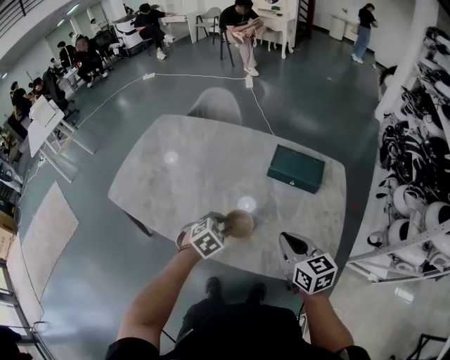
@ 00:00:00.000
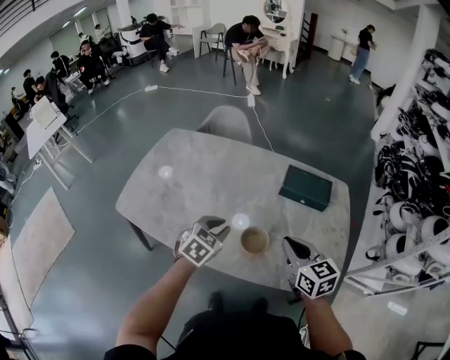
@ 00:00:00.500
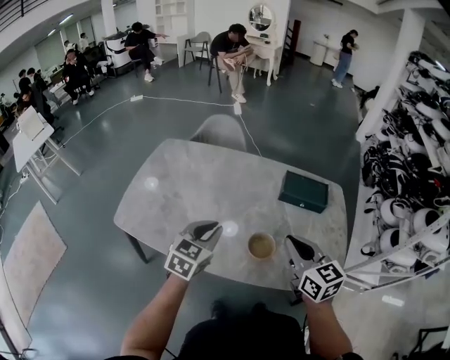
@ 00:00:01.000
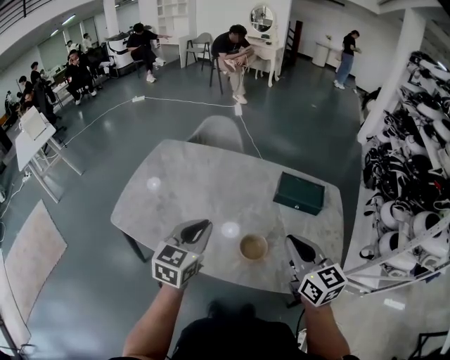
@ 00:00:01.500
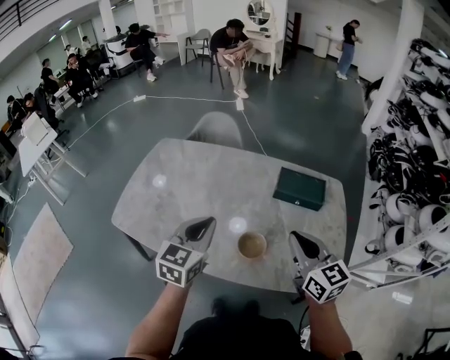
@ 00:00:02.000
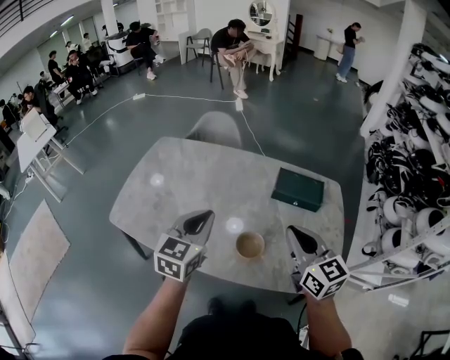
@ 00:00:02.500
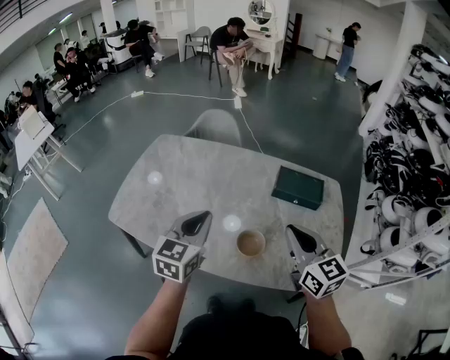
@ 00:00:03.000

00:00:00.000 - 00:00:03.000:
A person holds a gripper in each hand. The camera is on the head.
00:00:00.000 - 00:00:01.500: The left gripper goes some 25 cm upward and to the left, and angles its fingers upward, by some 40 degrees. Meanwhile the right gripper is displaced upward and to the left by about 20 cm.
00:00:01.500 - 00:00:03.000: The grippers make only small movements.

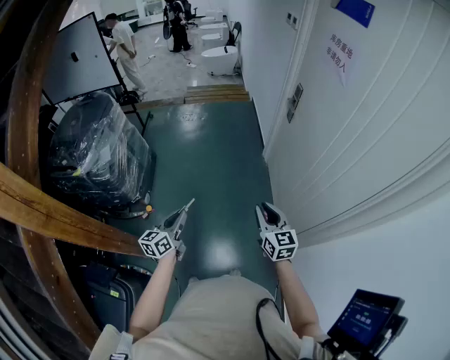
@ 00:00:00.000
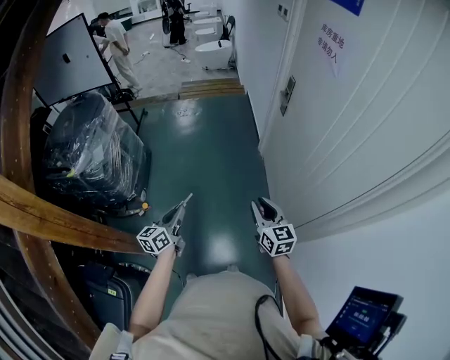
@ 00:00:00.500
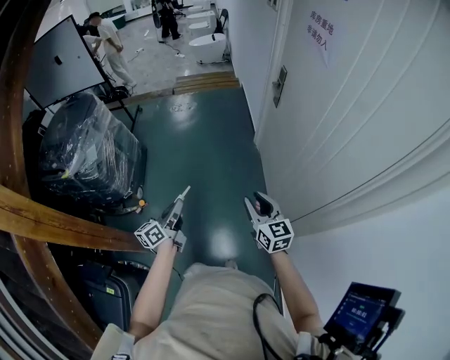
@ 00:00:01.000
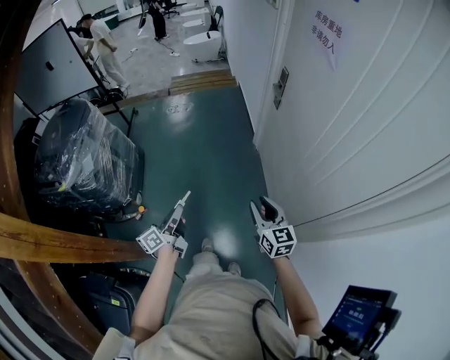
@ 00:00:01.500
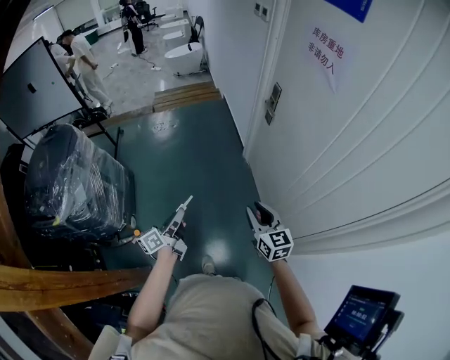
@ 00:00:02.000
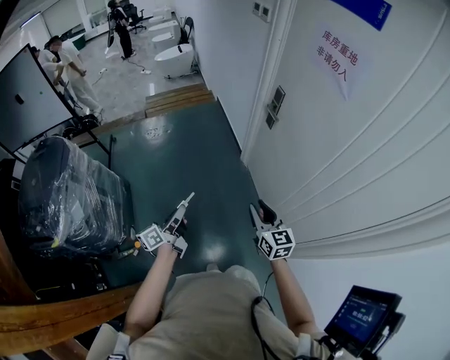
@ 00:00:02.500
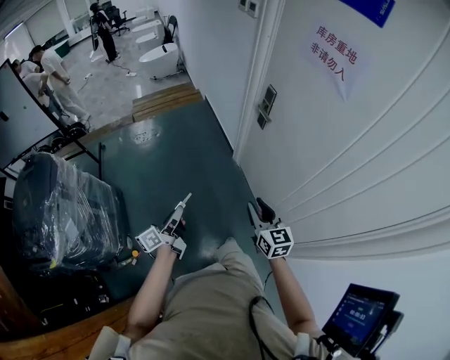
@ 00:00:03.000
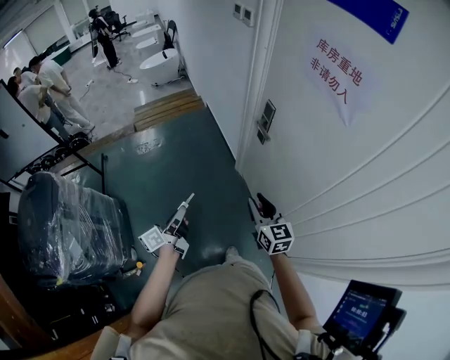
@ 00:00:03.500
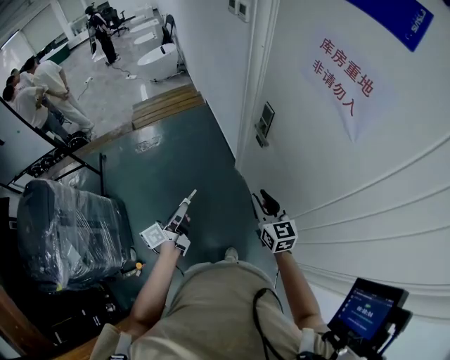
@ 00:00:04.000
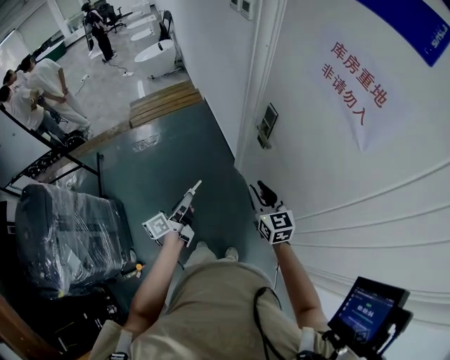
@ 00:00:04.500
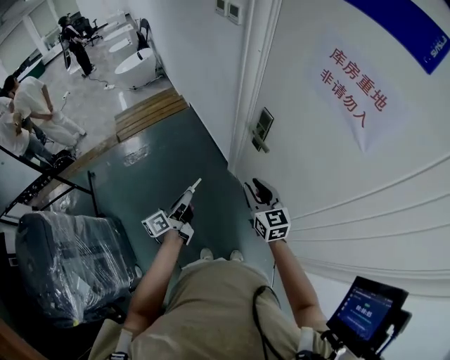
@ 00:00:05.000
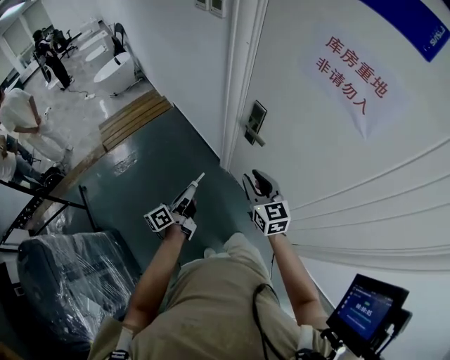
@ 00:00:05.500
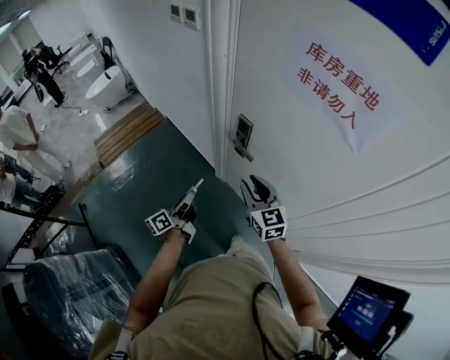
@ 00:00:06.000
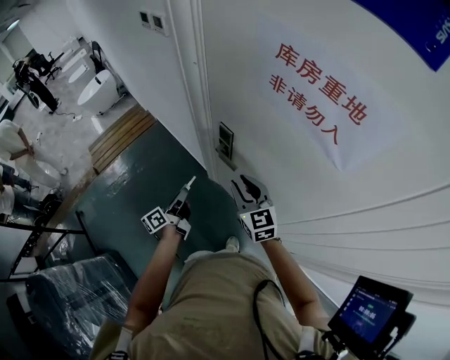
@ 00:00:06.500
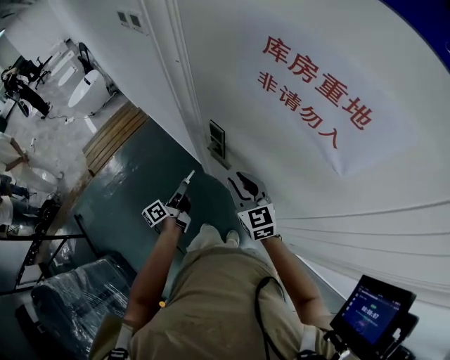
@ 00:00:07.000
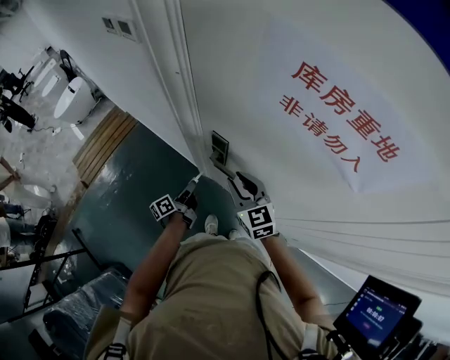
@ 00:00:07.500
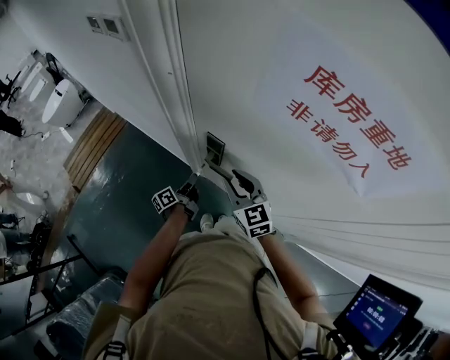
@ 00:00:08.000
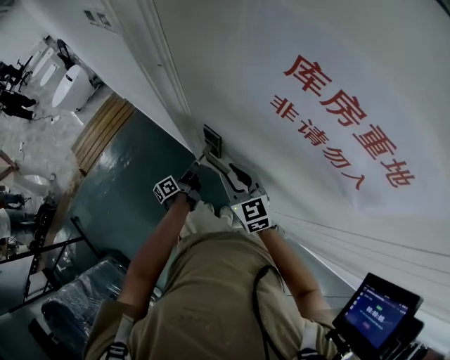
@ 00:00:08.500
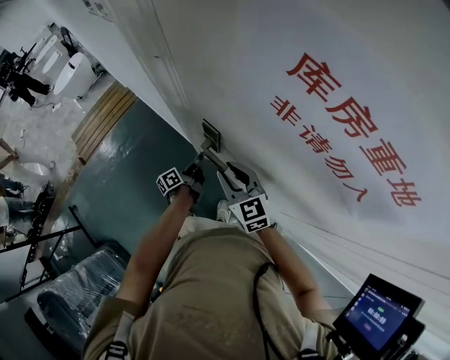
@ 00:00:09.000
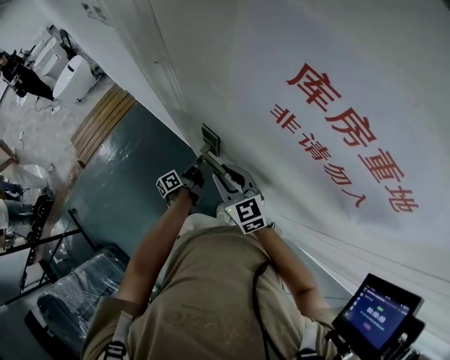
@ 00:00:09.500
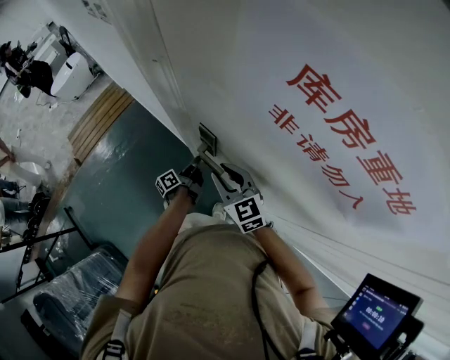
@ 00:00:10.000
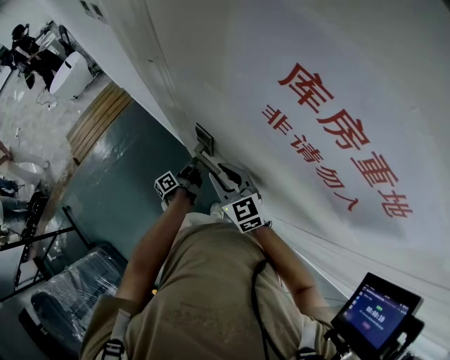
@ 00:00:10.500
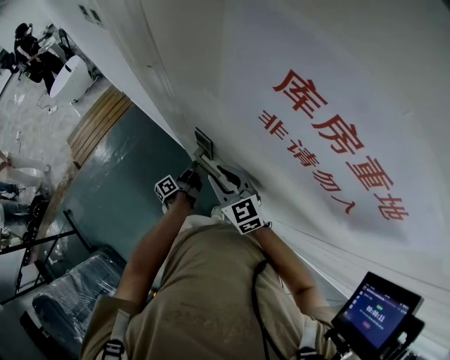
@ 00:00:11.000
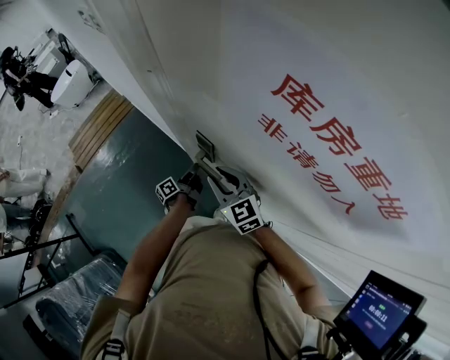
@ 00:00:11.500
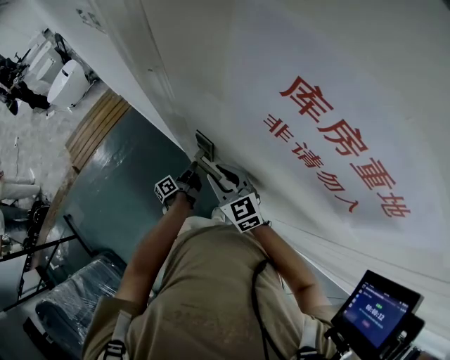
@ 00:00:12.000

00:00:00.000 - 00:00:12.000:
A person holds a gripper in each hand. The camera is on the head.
00:00:00.000 - 00:00:02.000: The grippers both shift forward by approximately 15 cm. The left gripper turns by about 30 degrees.
00:00:02.000 - 00:00:04.000: The grippers both shift forward by roughly 30 cm.
00:00:04.000 - 00:00:06.000: The right gripper moves forward, approximately 15 cm, while the left gripper moves forward, about 20 cm, and turns by some 20 degrees.
00:00:06.000 - 00:00:08.000: The right gripper heads forward, covering about 15 cm, while the left gripper travels forward and downward by approximately 25 cm.
00:00:08.000 - 00:00:10.000: The left gripper shifts by about 5 cm.
00:00:10.000 - 00:00:12.000: The grippers make only small movements.

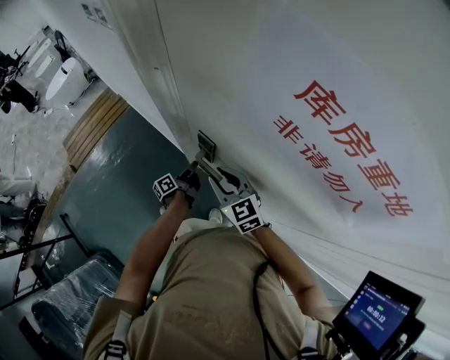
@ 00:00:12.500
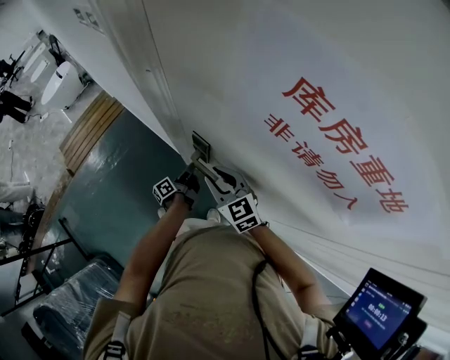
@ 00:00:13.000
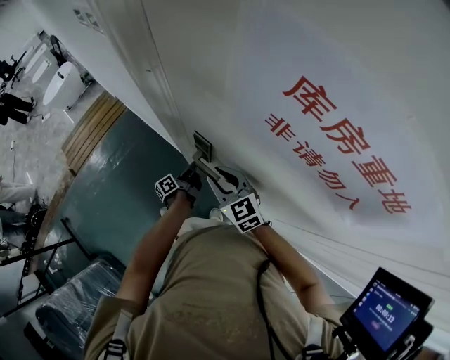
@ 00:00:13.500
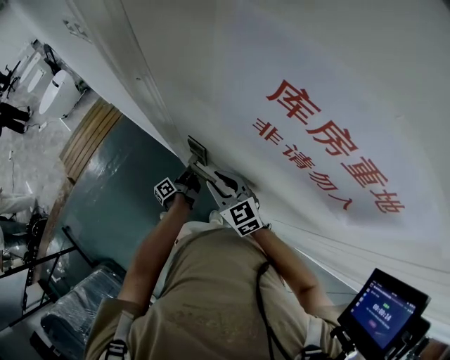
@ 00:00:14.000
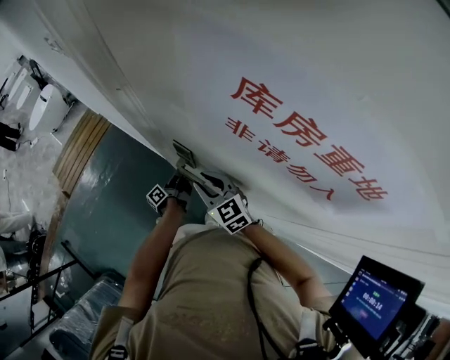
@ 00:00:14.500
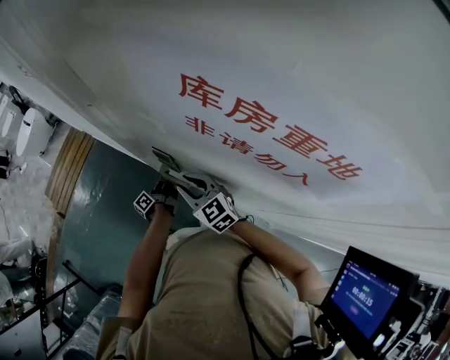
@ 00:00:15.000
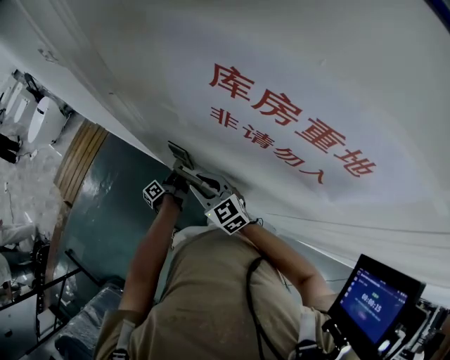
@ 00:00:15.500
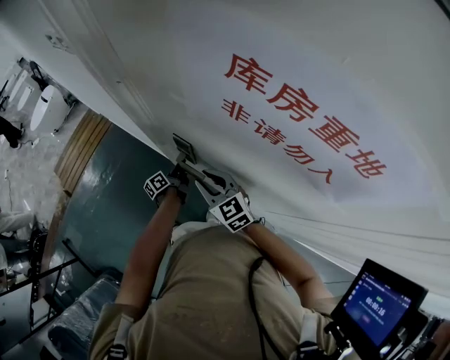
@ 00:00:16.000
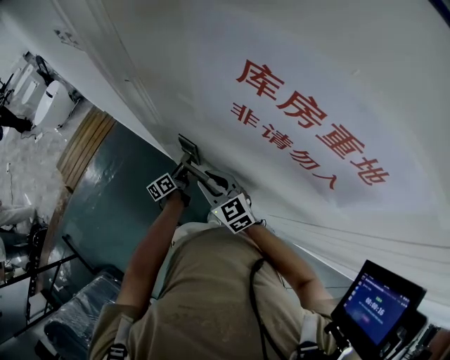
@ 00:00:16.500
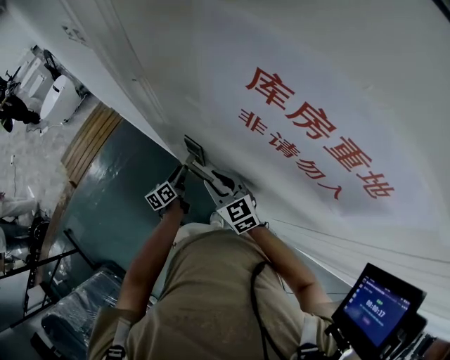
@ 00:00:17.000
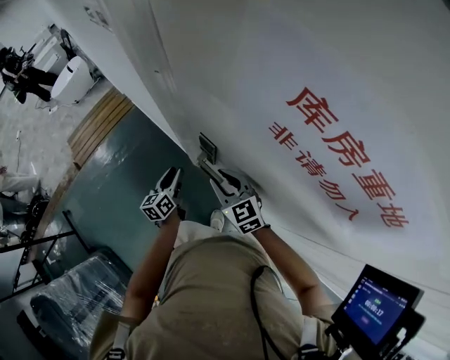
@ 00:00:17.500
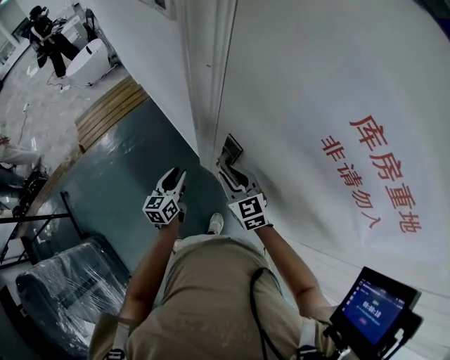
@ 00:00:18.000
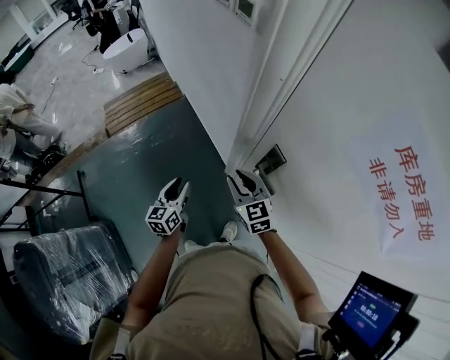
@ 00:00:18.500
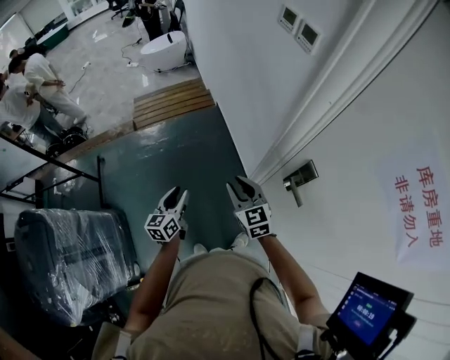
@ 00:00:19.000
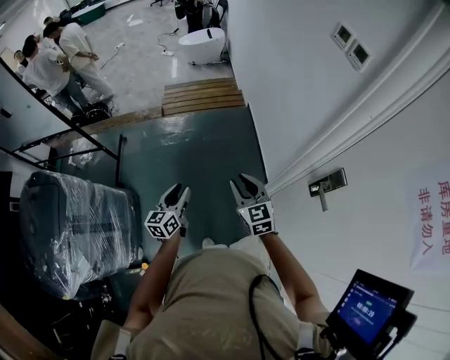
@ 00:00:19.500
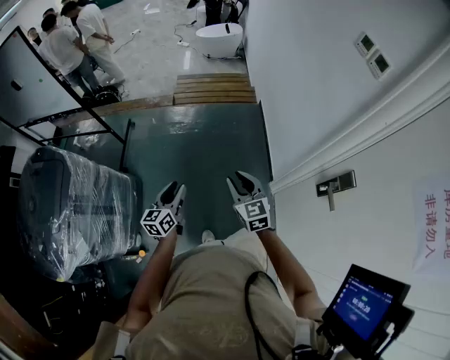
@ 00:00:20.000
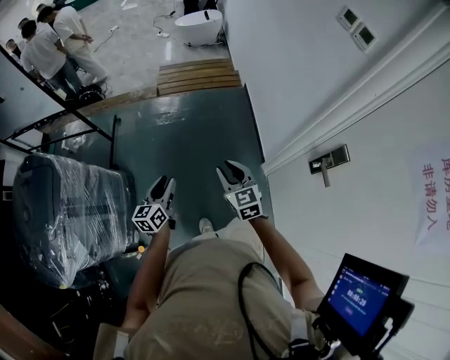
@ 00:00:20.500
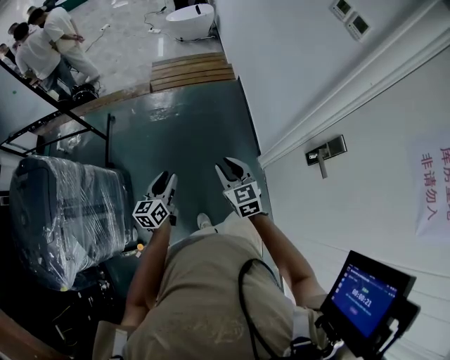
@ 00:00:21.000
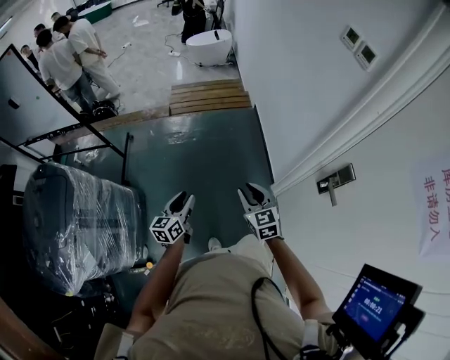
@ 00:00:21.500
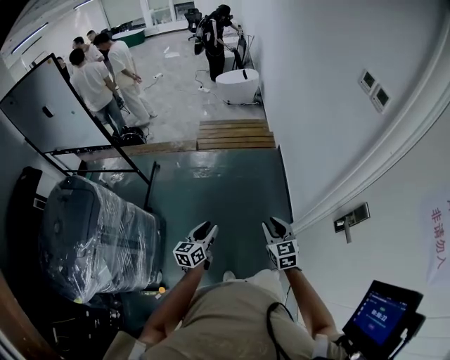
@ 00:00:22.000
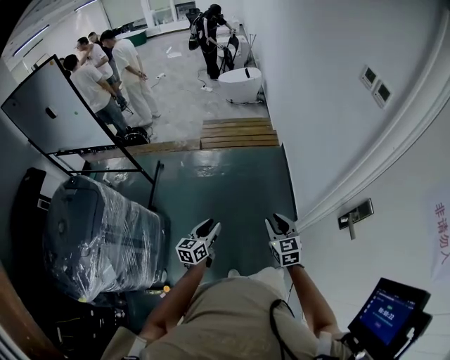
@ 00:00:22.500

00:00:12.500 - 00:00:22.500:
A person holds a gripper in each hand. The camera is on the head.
00:00:12.500 - 00:00:14.500: There are only small adjustments of the grippers.
00:00:14.500 - 00:00:16.500: The left gripper changes its angle by about 30 degrees, and opens its fingers.
00:00:16.500 - 00:00:18.500: The right gripper shifts some 15 cm to the left. The left gripper is displaced to the left, upward and backward by about 35 cm, and swivels roughly 40 degrees.
00:00:18.500 - 00:00:20.500: The left gripper changes place by approximately 35 cm, and changes its angle by approximately 30 degrees. Meanwhile the right gripper moves some 30 cm, and swivels roughly 20 degrees.
00:00:20.500 - 00:00:22.500: The grippers make only small movements.

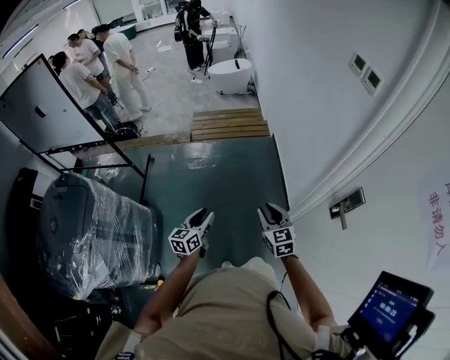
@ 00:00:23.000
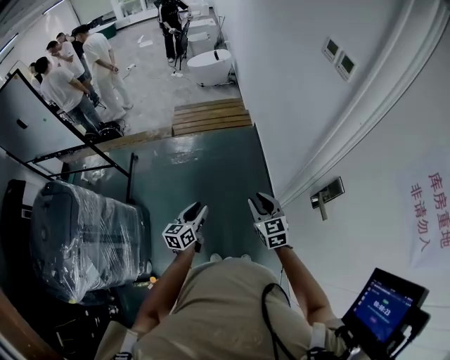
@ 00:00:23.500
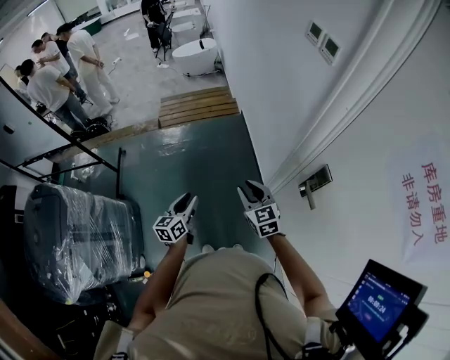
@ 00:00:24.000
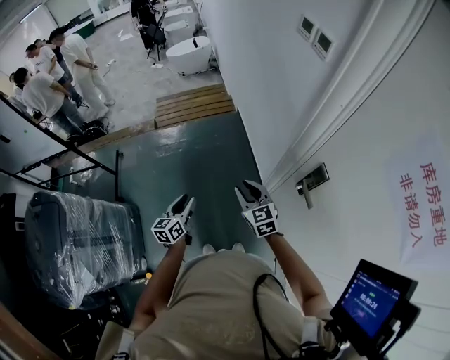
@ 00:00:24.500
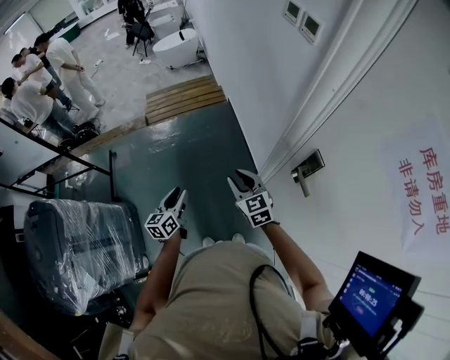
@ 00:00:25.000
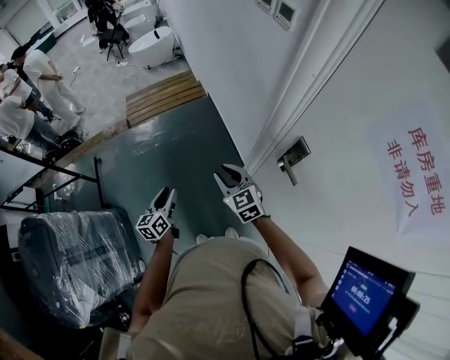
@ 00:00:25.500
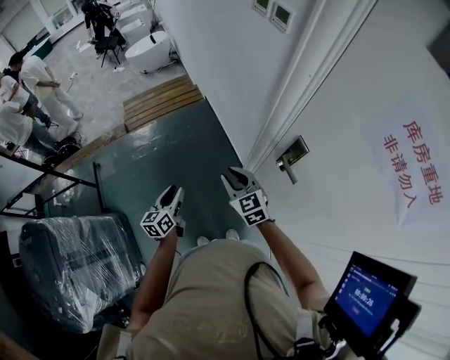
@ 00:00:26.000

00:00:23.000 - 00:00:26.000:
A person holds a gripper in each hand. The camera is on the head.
00:00:23.000 - 00:00:24.500: Both grippers travel together to the right, about 10 cm.
00:00:24.500 - 00:00:26.000: The grippers make only small movements.
